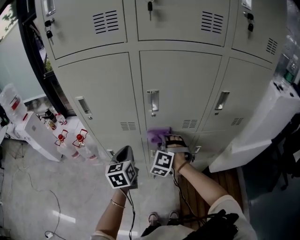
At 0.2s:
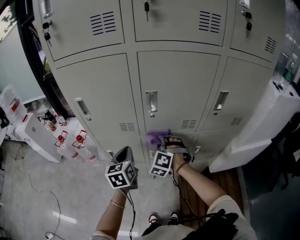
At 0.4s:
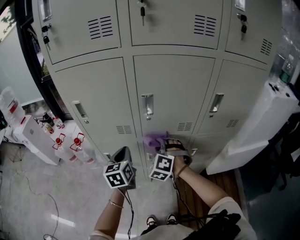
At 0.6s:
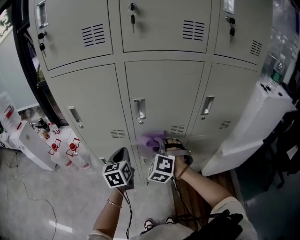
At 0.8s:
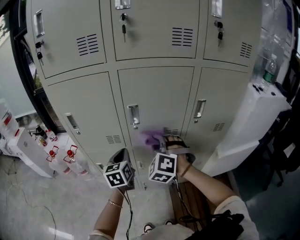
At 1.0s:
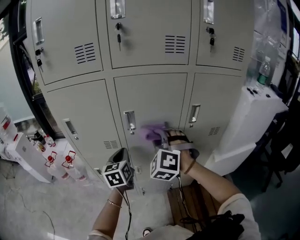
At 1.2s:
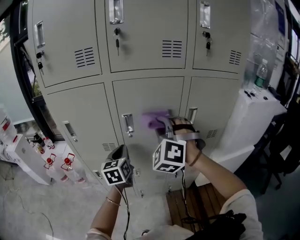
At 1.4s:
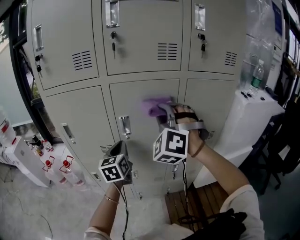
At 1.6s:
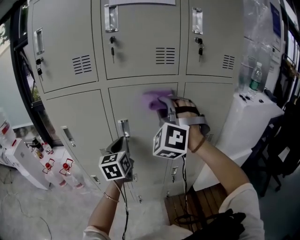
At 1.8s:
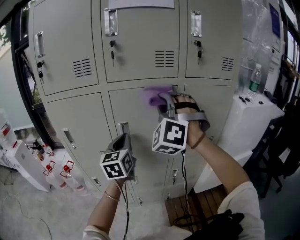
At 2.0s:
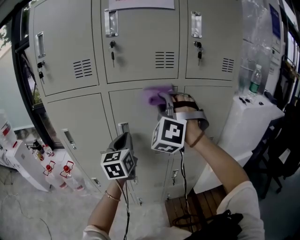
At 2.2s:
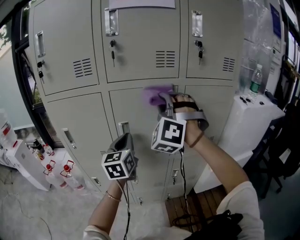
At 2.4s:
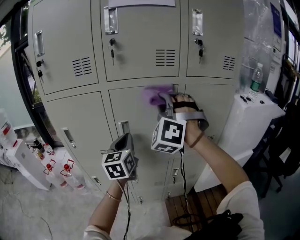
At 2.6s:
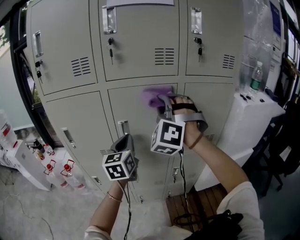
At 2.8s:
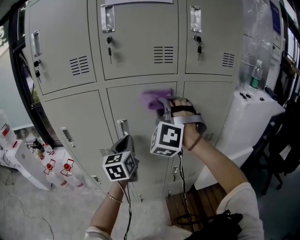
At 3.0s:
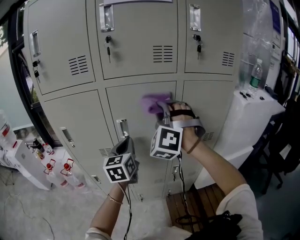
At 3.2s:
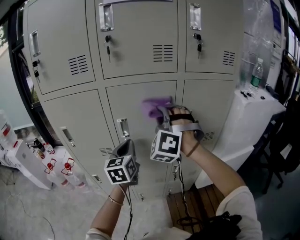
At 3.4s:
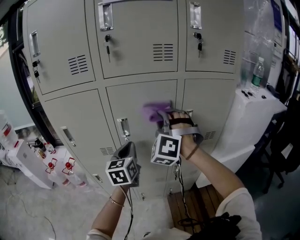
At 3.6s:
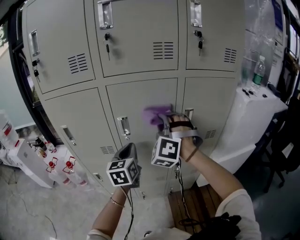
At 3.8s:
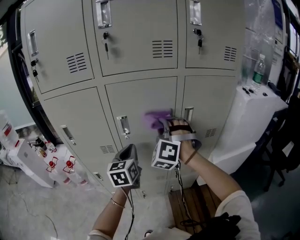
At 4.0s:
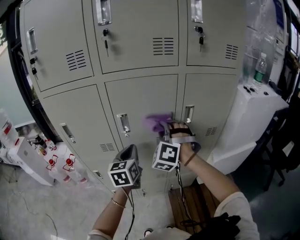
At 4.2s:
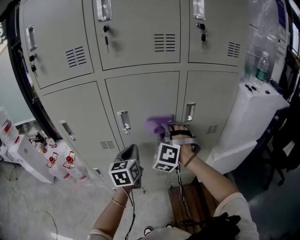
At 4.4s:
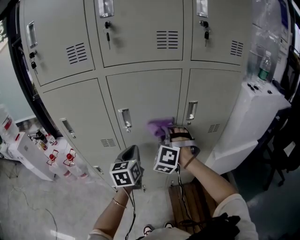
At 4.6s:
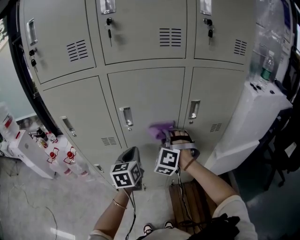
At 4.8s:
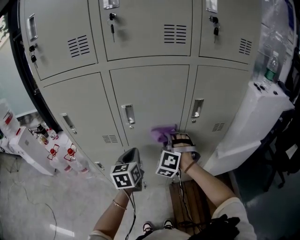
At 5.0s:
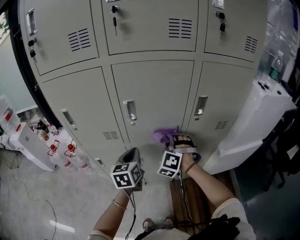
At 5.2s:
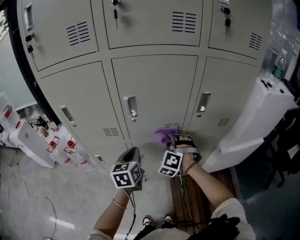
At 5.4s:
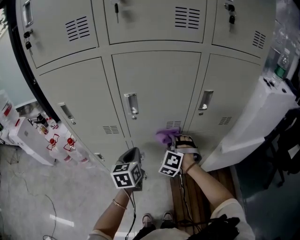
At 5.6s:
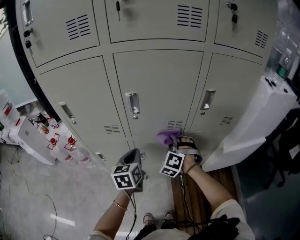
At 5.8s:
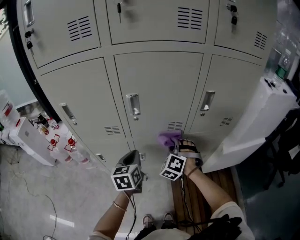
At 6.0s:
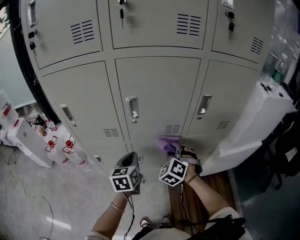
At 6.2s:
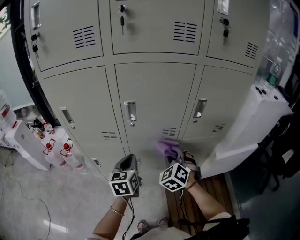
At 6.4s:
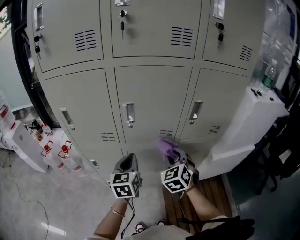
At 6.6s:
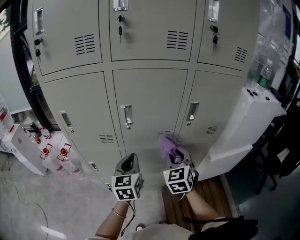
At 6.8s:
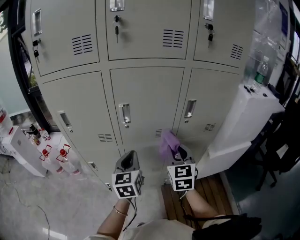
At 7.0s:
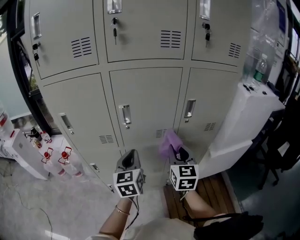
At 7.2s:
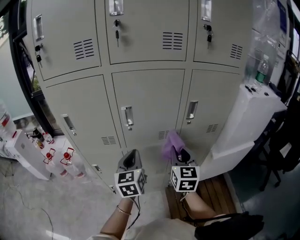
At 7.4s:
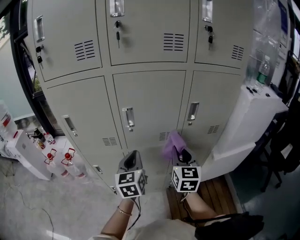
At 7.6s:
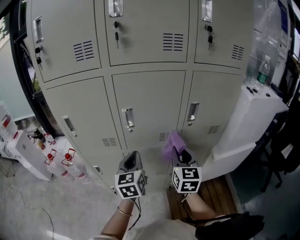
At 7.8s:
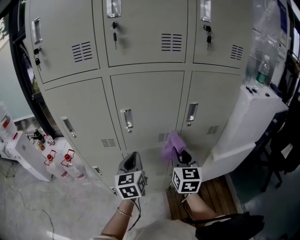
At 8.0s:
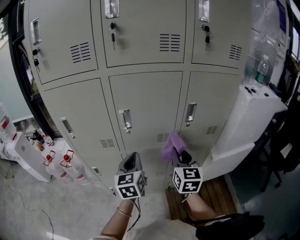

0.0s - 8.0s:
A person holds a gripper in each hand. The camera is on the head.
0.0s - 1.6s: The left gripper moves upward and to the right, roughly 20 cm, while the right gripper heads upward, covering about 35 cm, and rotates roughly 30 degrees.
1.6s - 3.2s: The right gripper moves downward, approximately 5 cm.
3.2s - 4.8s: The left gripper shifts about 10 cm downward; the right gripper heads downward, covering roughly 20 cm.
4.8s - 6.4s: The right gripper heads backward, covering roughly 5 cm, goes downward and returns, roughly 10 cm each way, and rotates around the line of its fingers by some 40 degrees, clockwise from behind.
6.4s - 8.0s: The right gripper travels upward by approximately 5 cm, and turns by approximately 40 degrees.

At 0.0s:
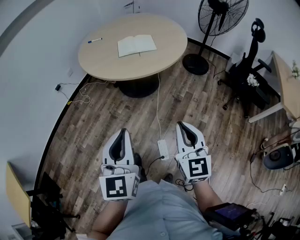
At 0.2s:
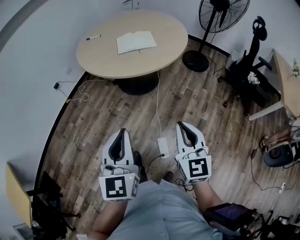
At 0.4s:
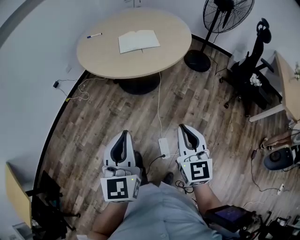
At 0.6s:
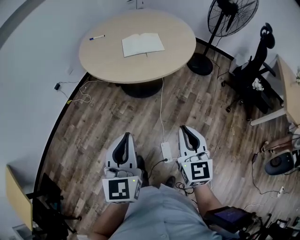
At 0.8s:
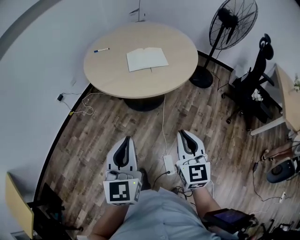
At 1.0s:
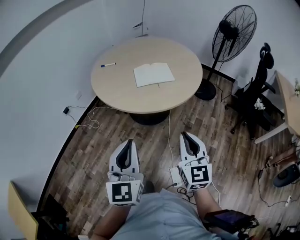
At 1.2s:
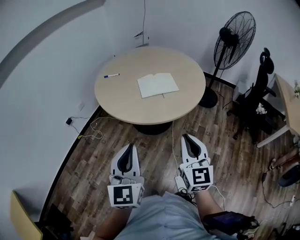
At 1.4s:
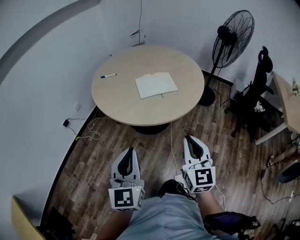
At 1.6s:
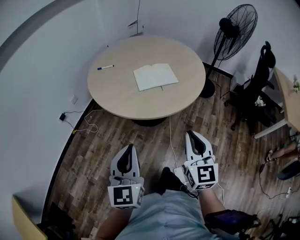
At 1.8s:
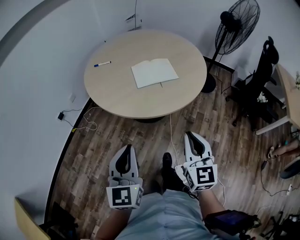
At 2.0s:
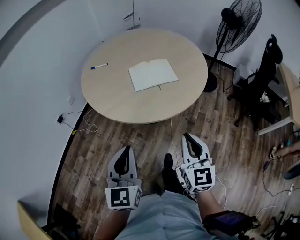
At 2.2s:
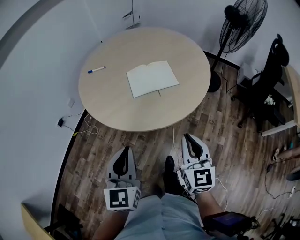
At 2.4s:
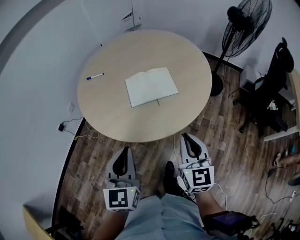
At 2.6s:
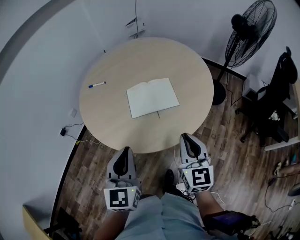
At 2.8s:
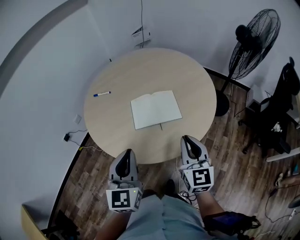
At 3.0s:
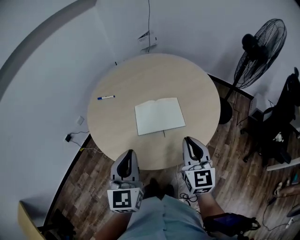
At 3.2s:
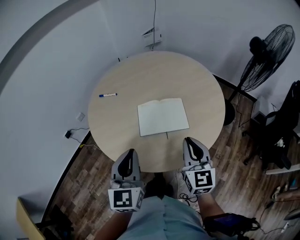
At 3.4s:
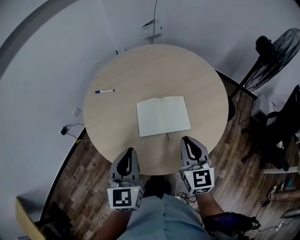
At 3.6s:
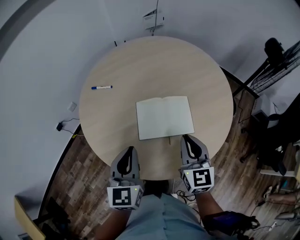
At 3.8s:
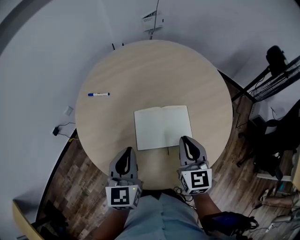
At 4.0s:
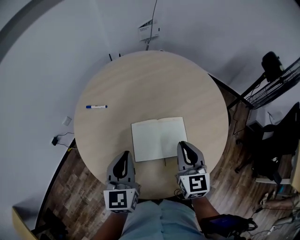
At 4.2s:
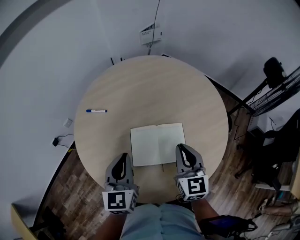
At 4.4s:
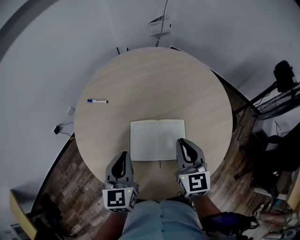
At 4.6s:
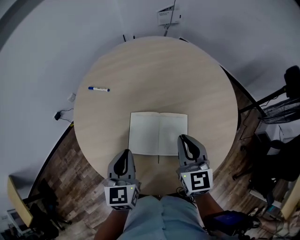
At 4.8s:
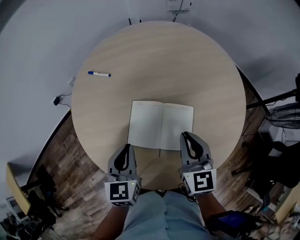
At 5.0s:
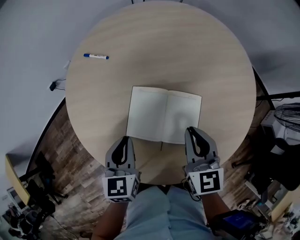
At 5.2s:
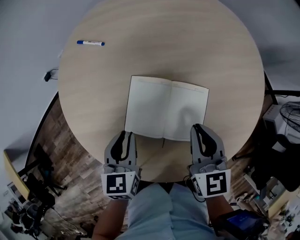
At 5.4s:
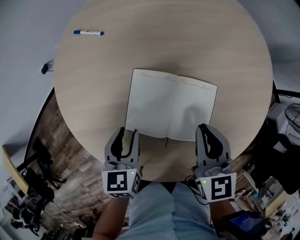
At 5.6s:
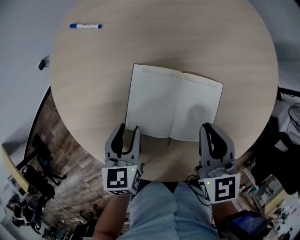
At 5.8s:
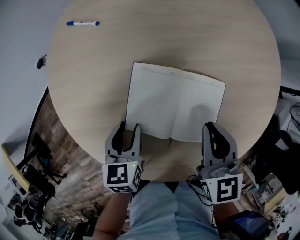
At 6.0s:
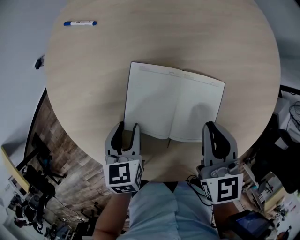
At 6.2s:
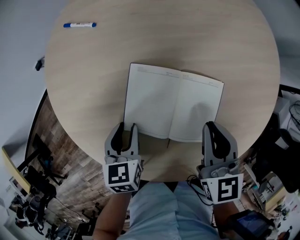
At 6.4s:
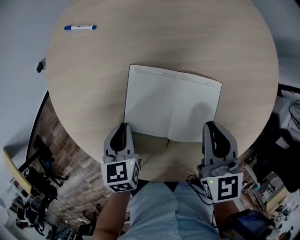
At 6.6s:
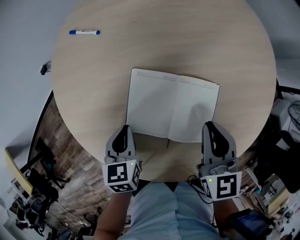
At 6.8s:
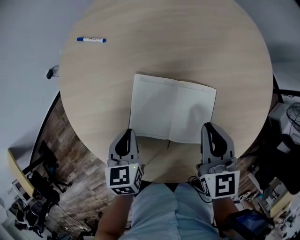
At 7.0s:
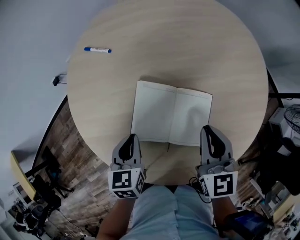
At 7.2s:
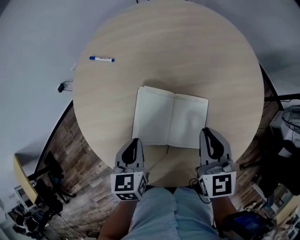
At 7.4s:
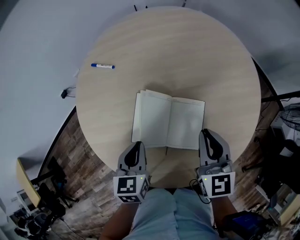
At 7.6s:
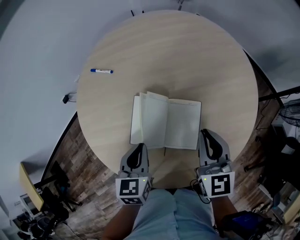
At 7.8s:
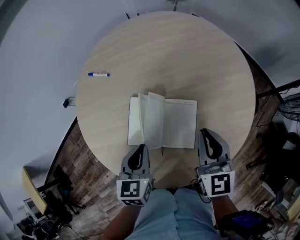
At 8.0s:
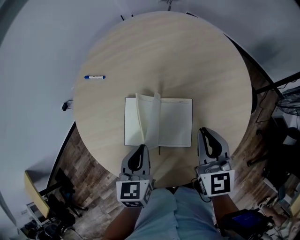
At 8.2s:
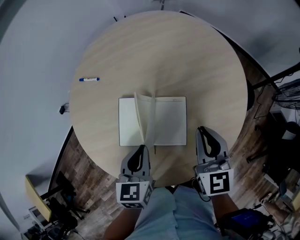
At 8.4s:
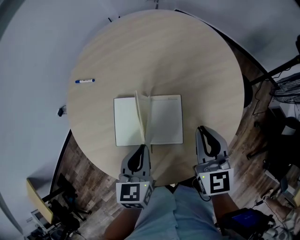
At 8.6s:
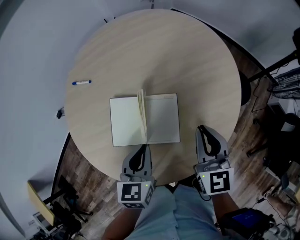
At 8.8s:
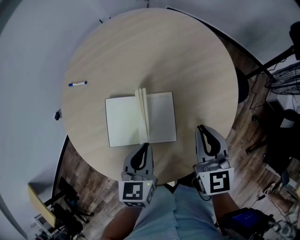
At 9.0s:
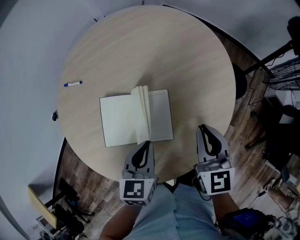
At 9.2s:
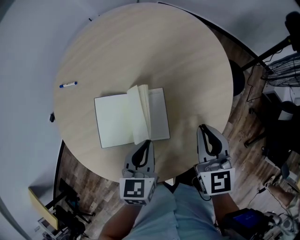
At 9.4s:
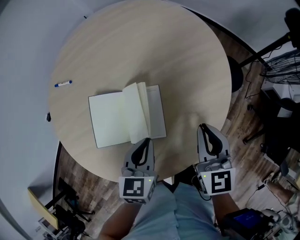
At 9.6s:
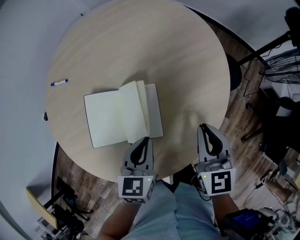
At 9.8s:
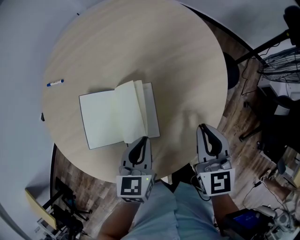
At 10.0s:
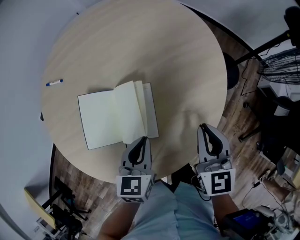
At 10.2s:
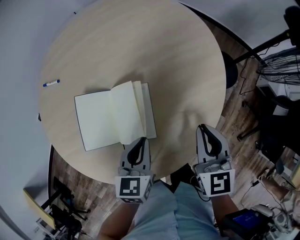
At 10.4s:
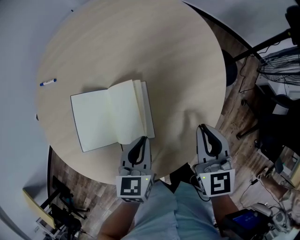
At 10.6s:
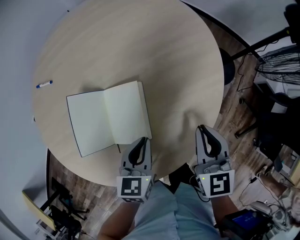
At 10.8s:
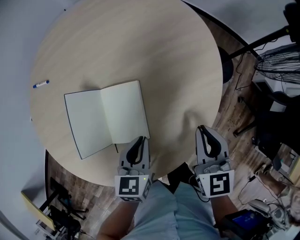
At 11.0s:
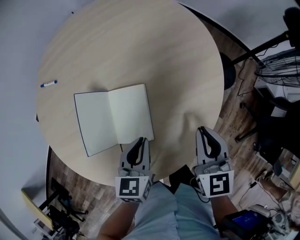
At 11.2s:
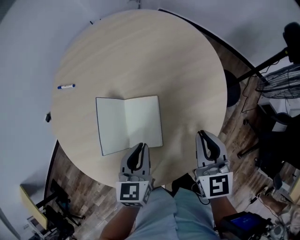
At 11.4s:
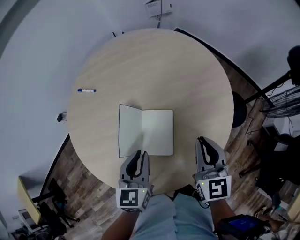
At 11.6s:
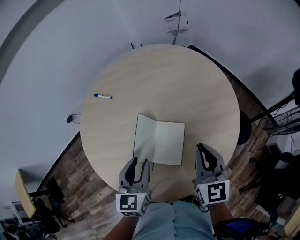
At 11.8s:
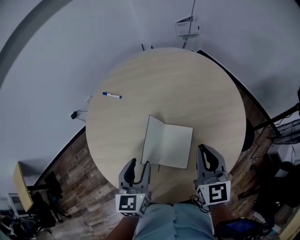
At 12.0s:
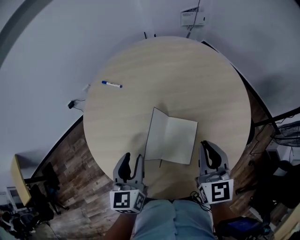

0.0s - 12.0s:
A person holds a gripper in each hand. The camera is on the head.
0.0s - 1.6s: Both grippers move forward and to the left, approximately 25 cm.
1.6s - 3.0s: Both grippers move forward, roughly 30 cm.
3.0s - 4.4s: The two grippers go roughly 25 cm forward.
4.4s - 6.0s: The left gripper heads downward, covering about 25 cm, swivels roughly 30 degrees, and opens its fingers. Meanwhile the right gripper moves downward, roughly 15 cm, and turns by roughly 20 degrees.
6.0s - 7.6s: Both grippers travel together upward and to the right, roughly 15 cm. The left gripper closes up.
7.6s - 9.0s: The grippers both shift to the right by approximately 10 cm.
9.0s - 10.4s: The left gripper goes roughly 10 cm downward and to the right. The right gripper travels to the right and downward by approximately 10 cm.
10.4s - 12.0s: The left gripper changes place by about 25 cm, swivels roughly 30 degrees, and opens up. Meanwhile the right gripper ends up about 20 cm from where it was, and swivels roughly 20 degrees.

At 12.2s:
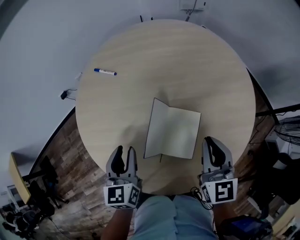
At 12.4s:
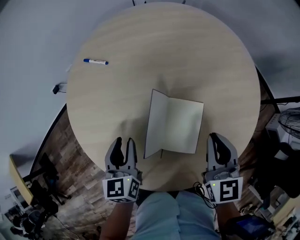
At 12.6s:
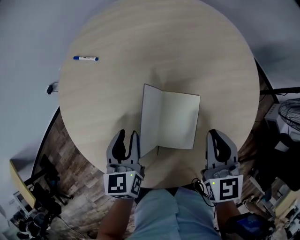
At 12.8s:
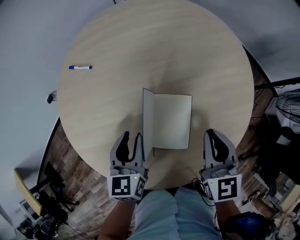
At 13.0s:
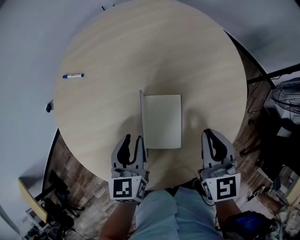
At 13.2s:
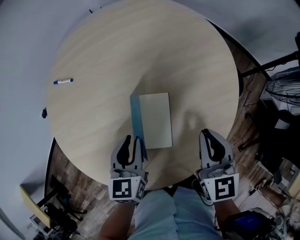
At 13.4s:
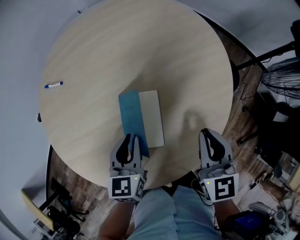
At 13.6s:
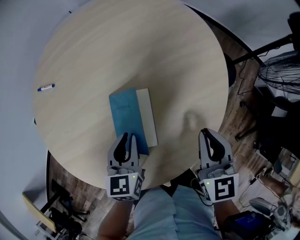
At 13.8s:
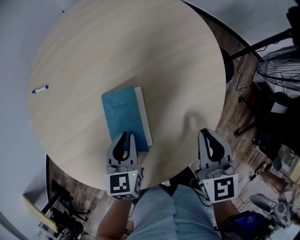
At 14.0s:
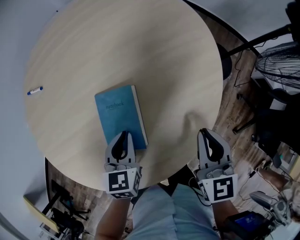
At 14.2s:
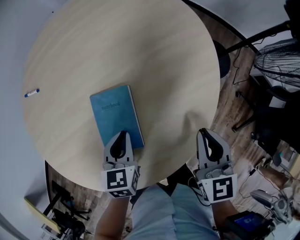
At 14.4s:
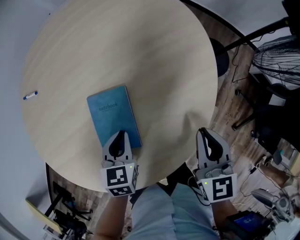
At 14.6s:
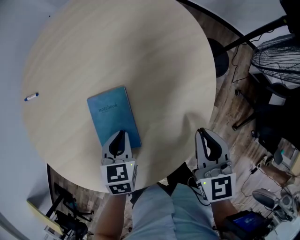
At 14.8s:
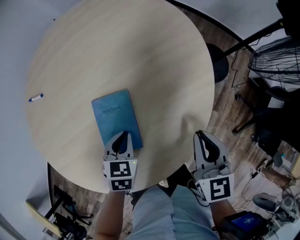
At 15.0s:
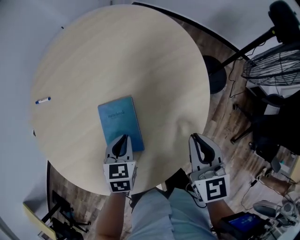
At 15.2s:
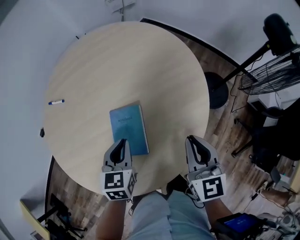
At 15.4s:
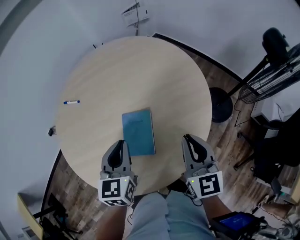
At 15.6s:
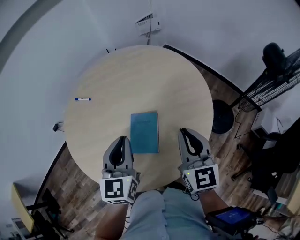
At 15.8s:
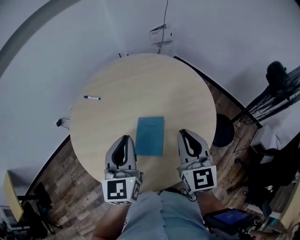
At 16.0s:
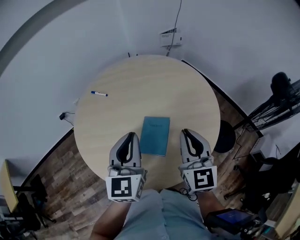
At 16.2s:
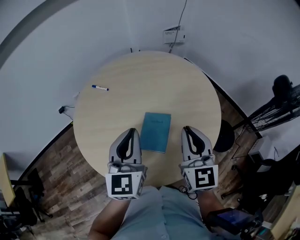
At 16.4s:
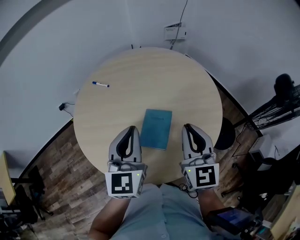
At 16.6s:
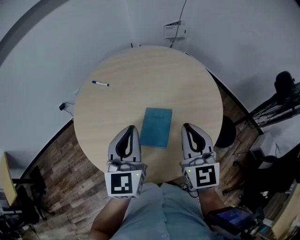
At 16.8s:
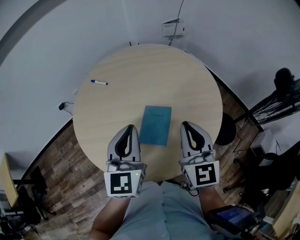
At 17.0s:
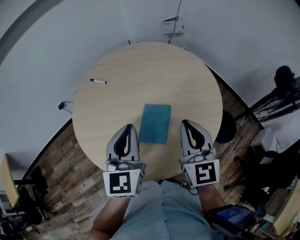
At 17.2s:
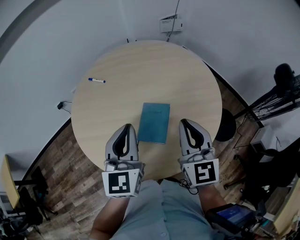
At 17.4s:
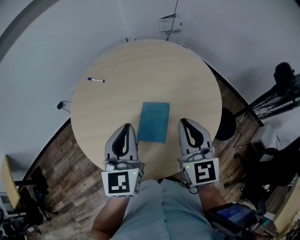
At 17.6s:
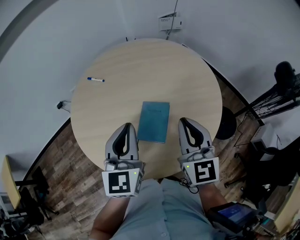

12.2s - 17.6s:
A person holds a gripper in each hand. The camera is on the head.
12.2s - 13.6s: The left gripper shifts roughly 20 cm to the right and downward, and changes its angle by some 30 degrees. Meanwhile the right gripper goes approximately 20 cm to the right, downward and backward.
13.6s - 15.0s: The left gripper heads downward, covering some 5 cm, and turns by some 20 degrees.
15.0s - 16.2s: The left gripper heads upward, covering approximately 30 cm, and tips its fingers upward by roughly 50 degrees, while the right gripper shifts about 25 cm upward and to the left, and rotates about 30 degrees.
16.2s - 17.6s: Both grippers stay about where they are.
